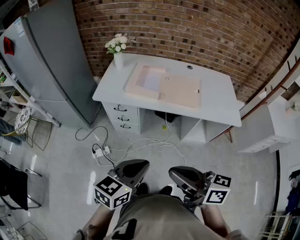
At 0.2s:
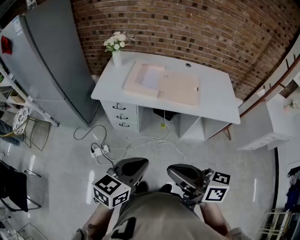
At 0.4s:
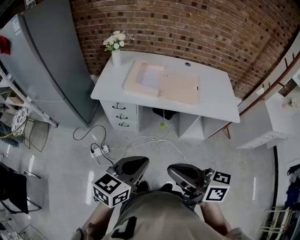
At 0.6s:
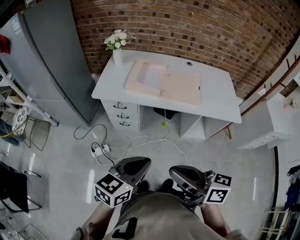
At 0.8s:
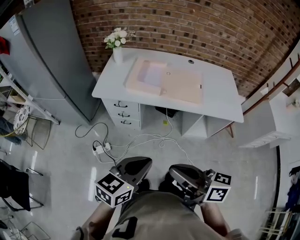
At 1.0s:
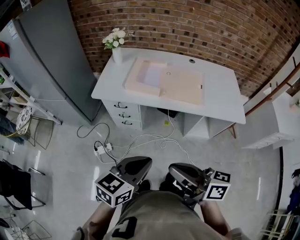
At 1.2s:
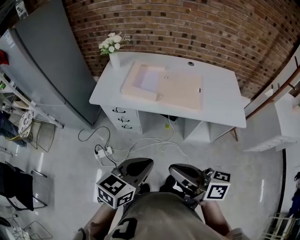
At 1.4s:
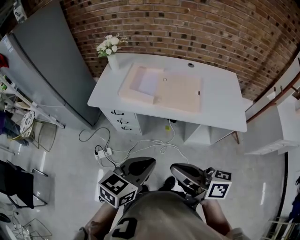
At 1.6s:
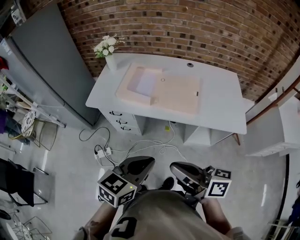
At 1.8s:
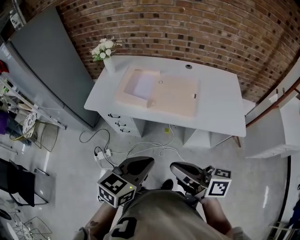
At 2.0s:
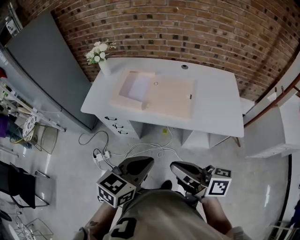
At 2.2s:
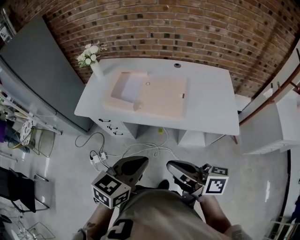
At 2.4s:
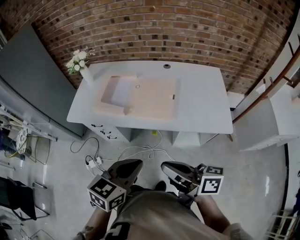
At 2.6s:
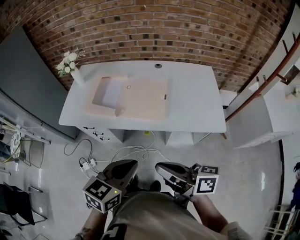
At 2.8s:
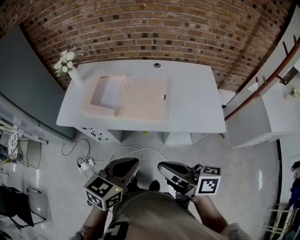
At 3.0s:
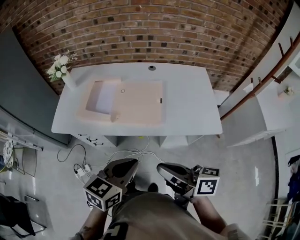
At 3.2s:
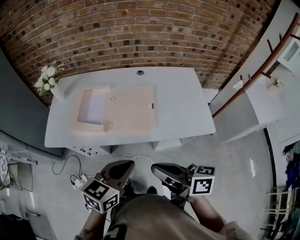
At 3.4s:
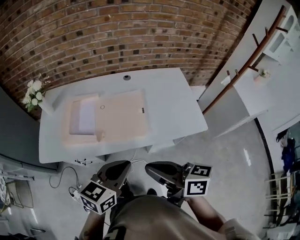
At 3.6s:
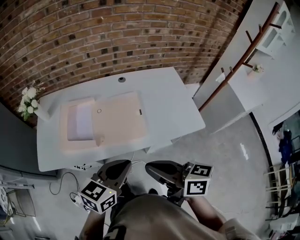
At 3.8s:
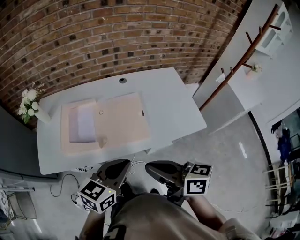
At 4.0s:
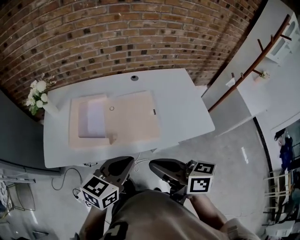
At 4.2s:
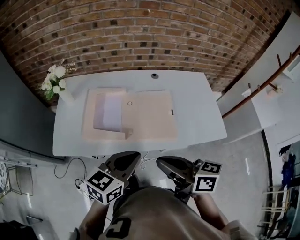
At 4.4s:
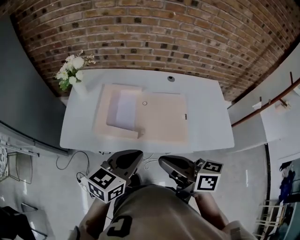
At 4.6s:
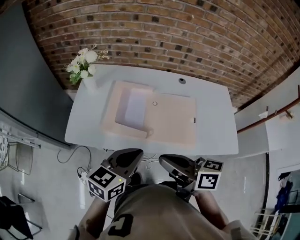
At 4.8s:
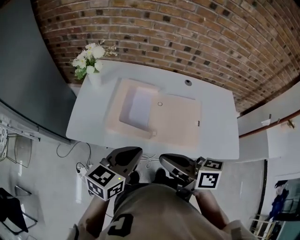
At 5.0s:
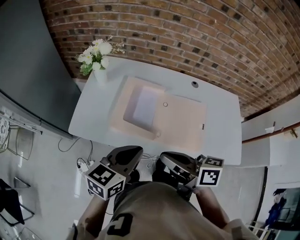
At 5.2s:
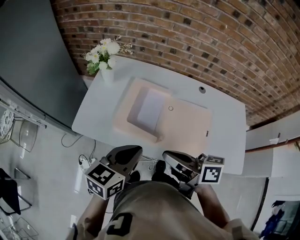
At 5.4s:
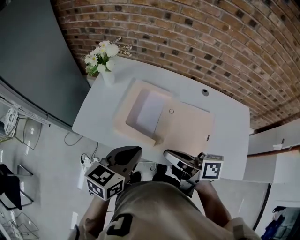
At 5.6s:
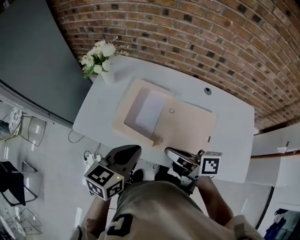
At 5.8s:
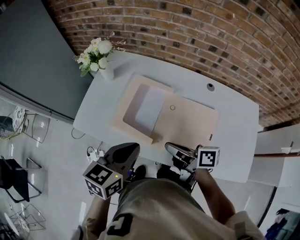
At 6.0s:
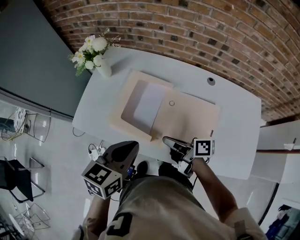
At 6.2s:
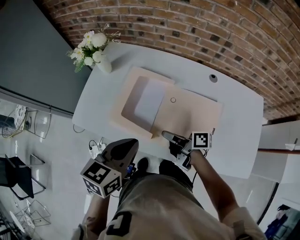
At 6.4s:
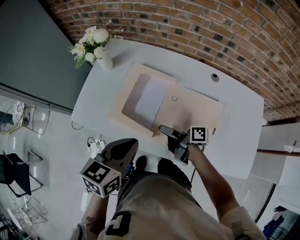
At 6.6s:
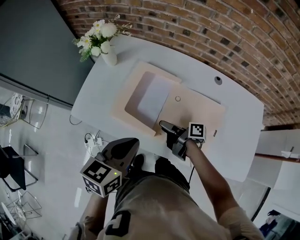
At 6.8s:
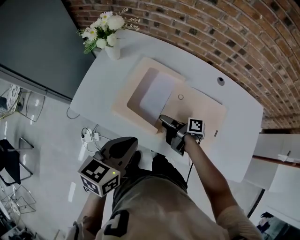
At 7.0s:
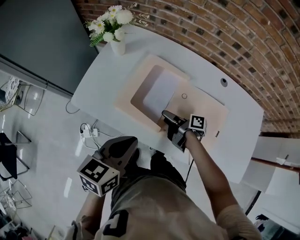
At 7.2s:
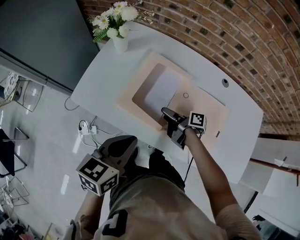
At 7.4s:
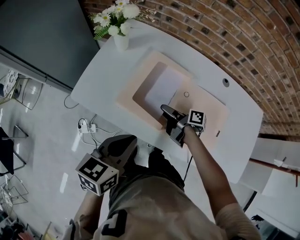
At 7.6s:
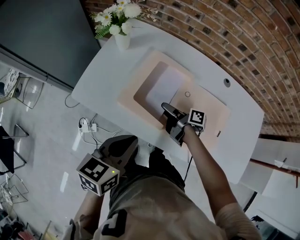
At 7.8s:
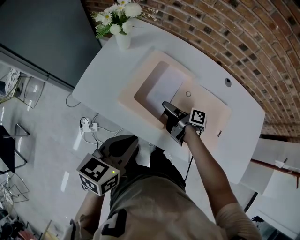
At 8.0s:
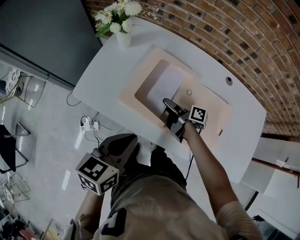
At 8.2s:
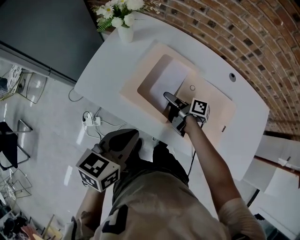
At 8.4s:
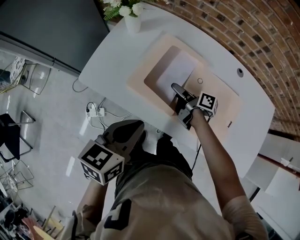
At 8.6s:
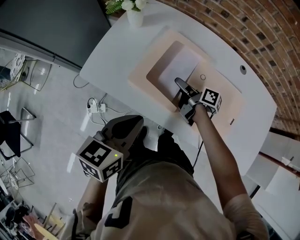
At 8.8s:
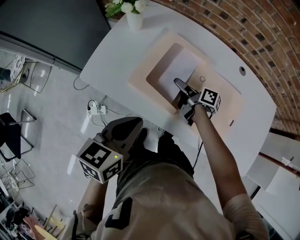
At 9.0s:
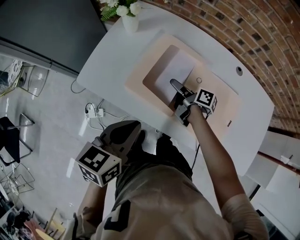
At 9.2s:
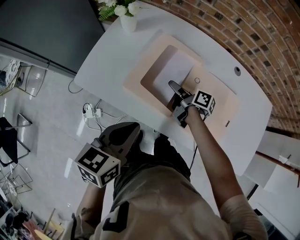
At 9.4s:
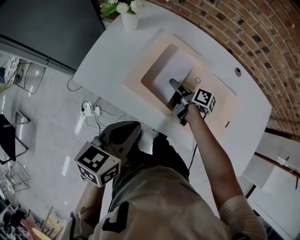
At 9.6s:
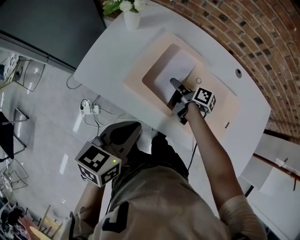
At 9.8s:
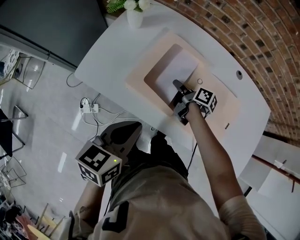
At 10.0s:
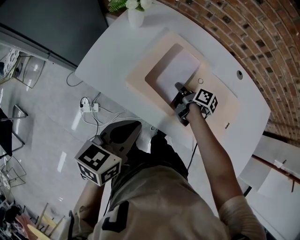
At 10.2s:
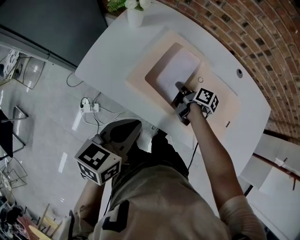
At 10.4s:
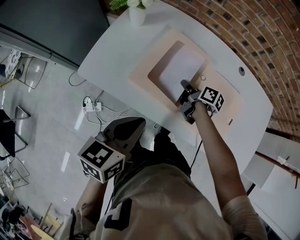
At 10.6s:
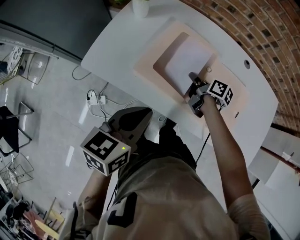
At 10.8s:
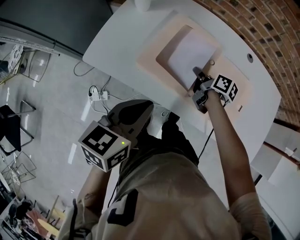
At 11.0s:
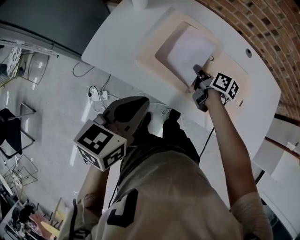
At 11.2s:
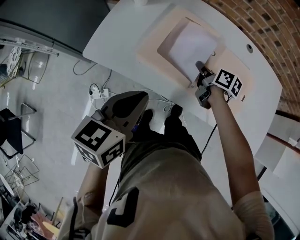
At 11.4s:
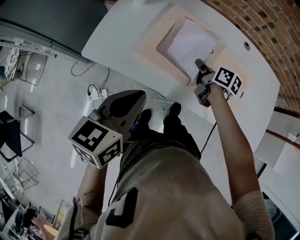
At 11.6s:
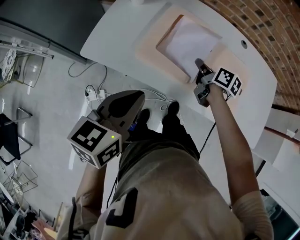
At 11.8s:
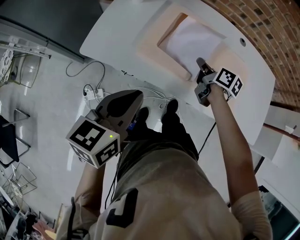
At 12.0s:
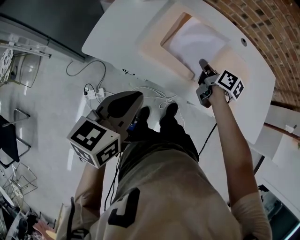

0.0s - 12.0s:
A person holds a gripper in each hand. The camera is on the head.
0.0s - 1.6s: The grippers both shift to the right and forward by about 15 cm.
1.6s - 3.0s: The right gripper moves to the right and forward, roughly 10 cm. The left gripper travels forward and to the right by approximately 15 cm.
3.0s - 4.4s: Both grippers travel together to the left and forward, approximately 20 cm.
4.4s - 6.0s: The left gripper goes roughly 10 cm forward, and swivels roughly 30 degrees. Meanwhile the right gripper shifts approximately 20 cm downward and forward, and turns by some 40 degrees.
6.0s - 7.6s: The left gripper shifts some 5 cm to the left. The right gripper goes approximately 15 cm downward and forward, and opens its fingers.
7.6s - 9.0s: The grippers move only a little.
9.0s - 10.4s: The right gripper closes.
10.4s - 12.0s: The left gripper moves to the left, about 5 cm; the right gripper heads upward and backward, covering roughly 10 cm.

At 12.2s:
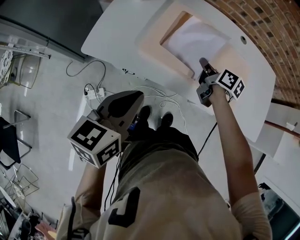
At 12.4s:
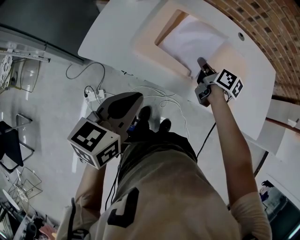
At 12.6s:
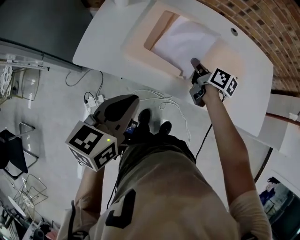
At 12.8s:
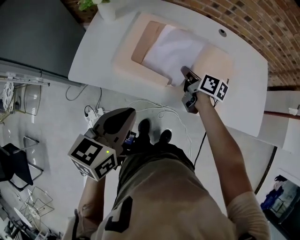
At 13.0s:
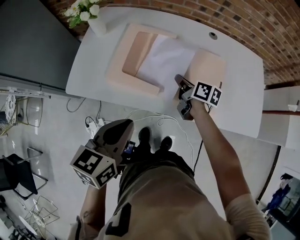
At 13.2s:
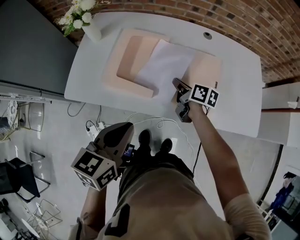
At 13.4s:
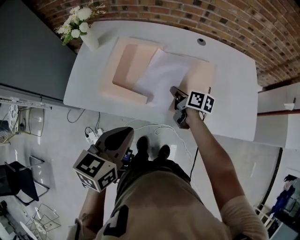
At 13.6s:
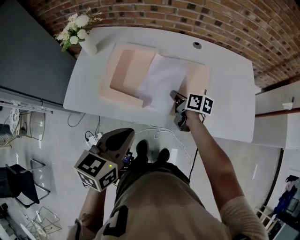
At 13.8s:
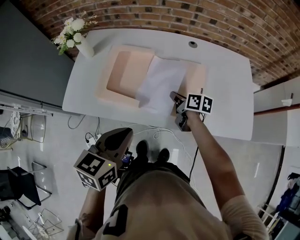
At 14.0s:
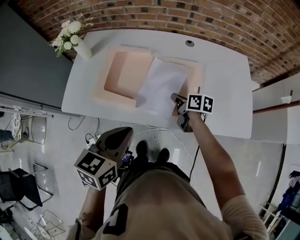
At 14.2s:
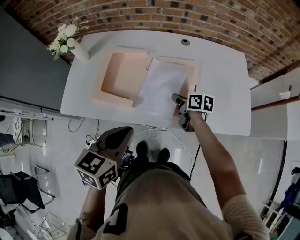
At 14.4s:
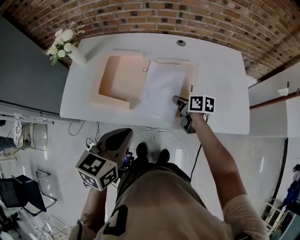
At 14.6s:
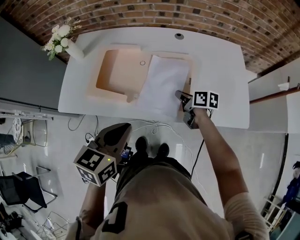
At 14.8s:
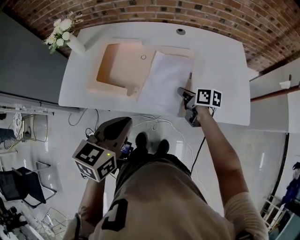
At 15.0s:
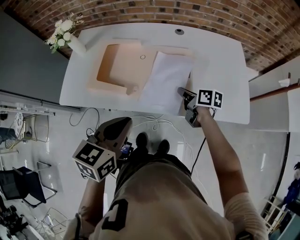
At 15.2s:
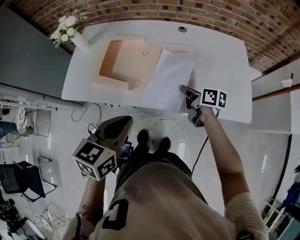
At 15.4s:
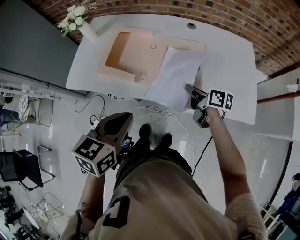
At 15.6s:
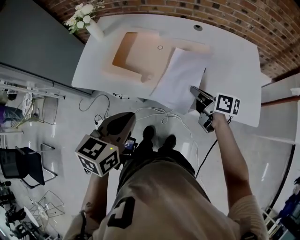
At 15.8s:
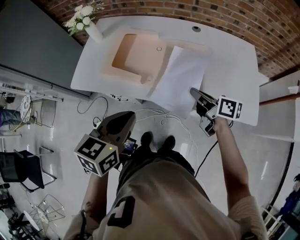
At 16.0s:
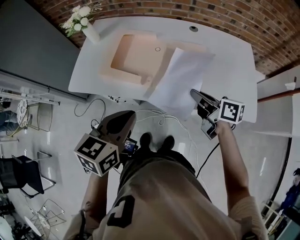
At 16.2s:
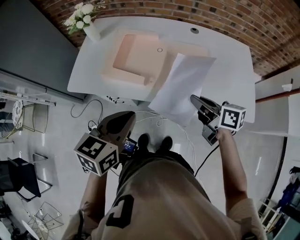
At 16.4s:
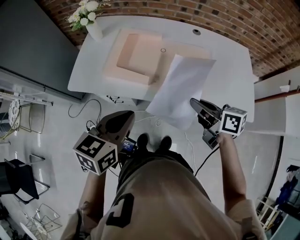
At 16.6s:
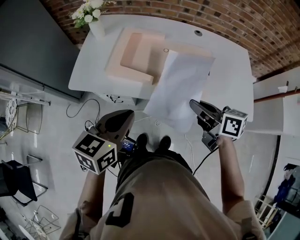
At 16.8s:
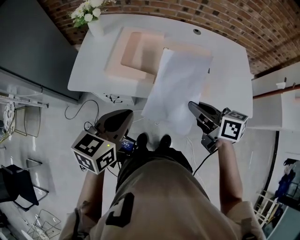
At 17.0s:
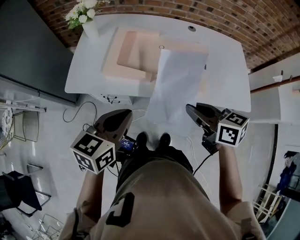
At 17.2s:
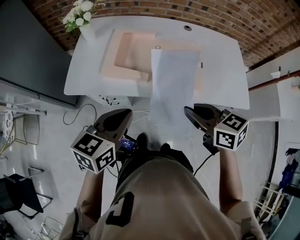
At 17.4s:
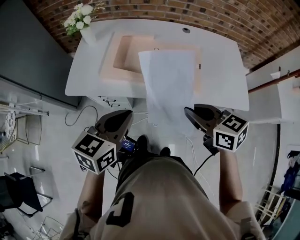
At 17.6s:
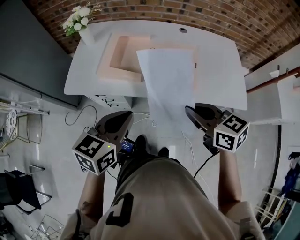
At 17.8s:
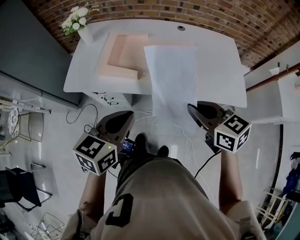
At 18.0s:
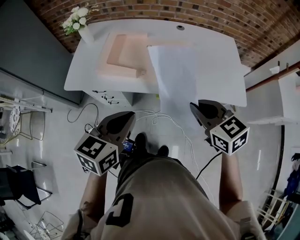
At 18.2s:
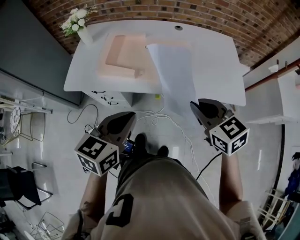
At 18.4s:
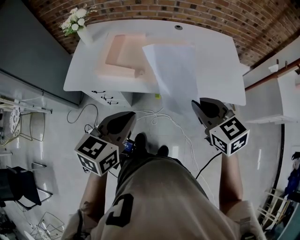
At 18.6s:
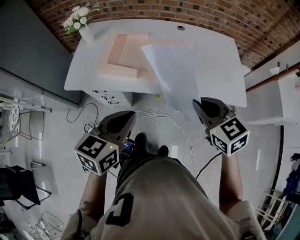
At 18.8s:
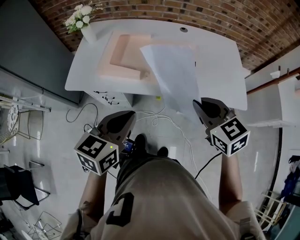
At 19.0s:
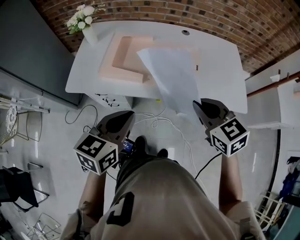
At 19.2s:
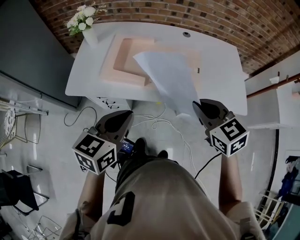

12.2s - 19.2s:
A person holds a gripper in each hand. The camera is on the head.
12.2s - 13.6s: The two grippers go some 15 cm to the right.
13.6s - 15.0s: The right gripper travels to the right and backward by roughly 15 cm. The left gripper goes about 5 cm to the right.
15.0s - 16.4s: The right gripper shifts about 20 cm upward, to the left and backward; the left gripper goes roughly 10 cm to the left.
16.4s - 17.8s: The right gripper heads backward and upward, covering some 10 cm, and rotates about 30 degrees, while the left gripper is displaced backward by about 5 cm.
17.8s - 19.2s: The left gripper moves roughly 5 cm.

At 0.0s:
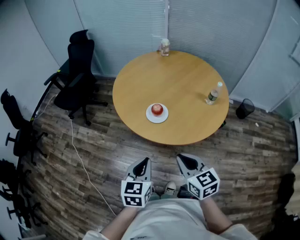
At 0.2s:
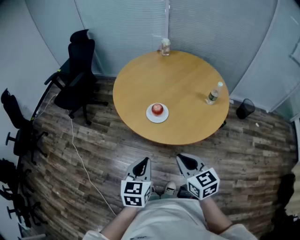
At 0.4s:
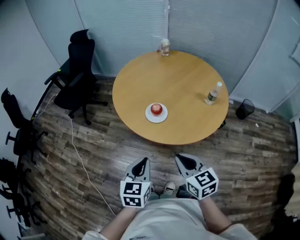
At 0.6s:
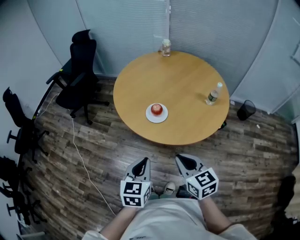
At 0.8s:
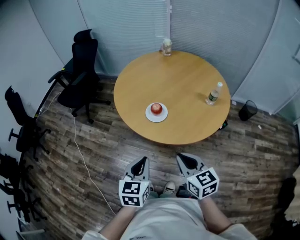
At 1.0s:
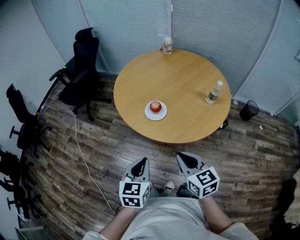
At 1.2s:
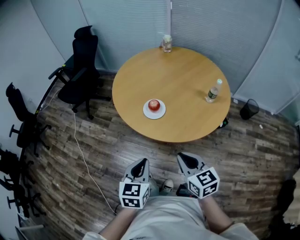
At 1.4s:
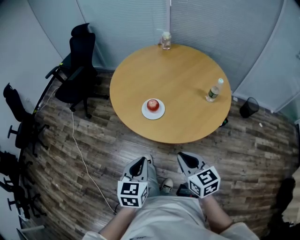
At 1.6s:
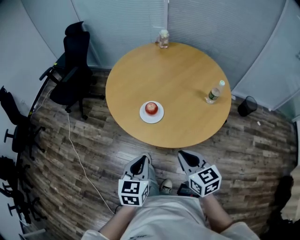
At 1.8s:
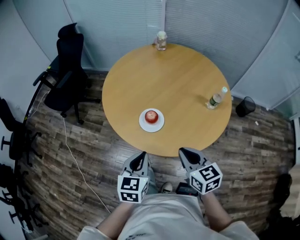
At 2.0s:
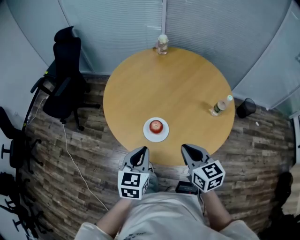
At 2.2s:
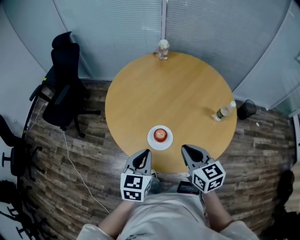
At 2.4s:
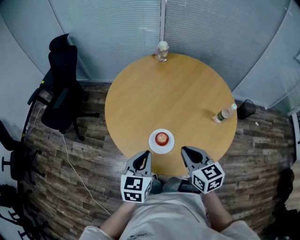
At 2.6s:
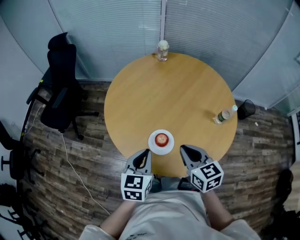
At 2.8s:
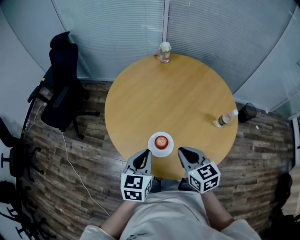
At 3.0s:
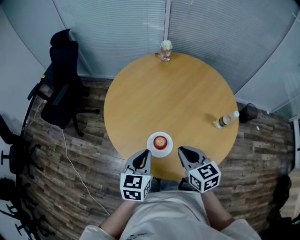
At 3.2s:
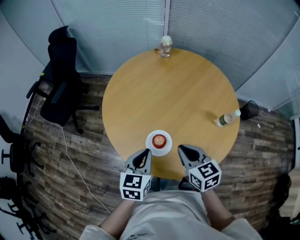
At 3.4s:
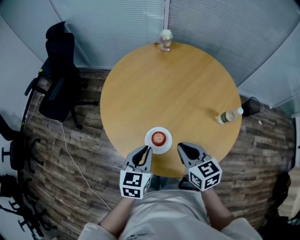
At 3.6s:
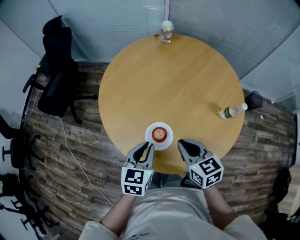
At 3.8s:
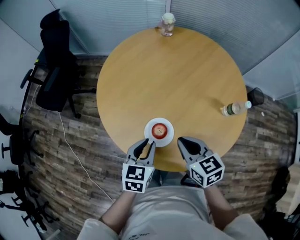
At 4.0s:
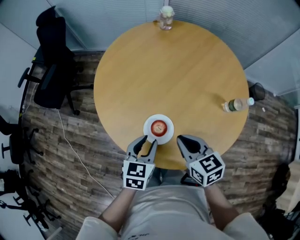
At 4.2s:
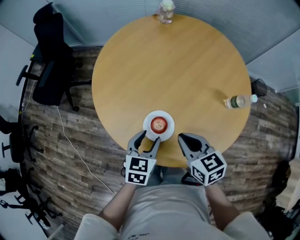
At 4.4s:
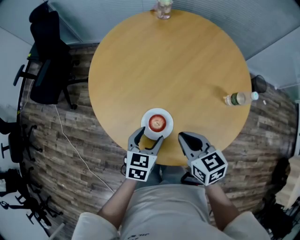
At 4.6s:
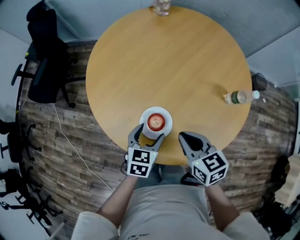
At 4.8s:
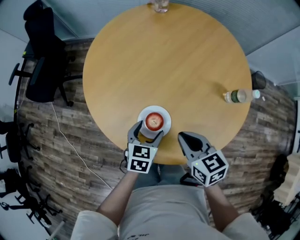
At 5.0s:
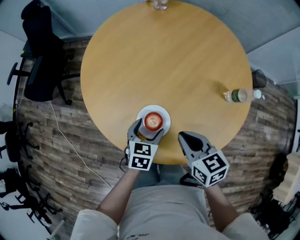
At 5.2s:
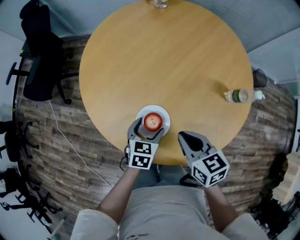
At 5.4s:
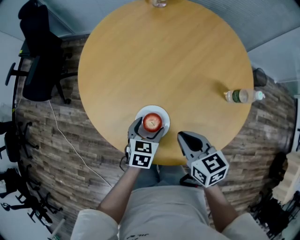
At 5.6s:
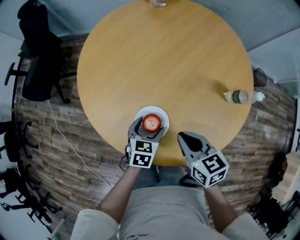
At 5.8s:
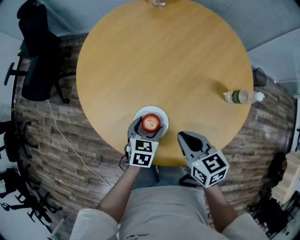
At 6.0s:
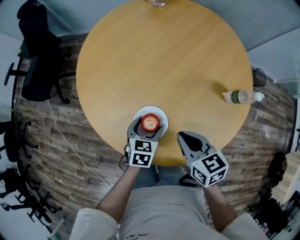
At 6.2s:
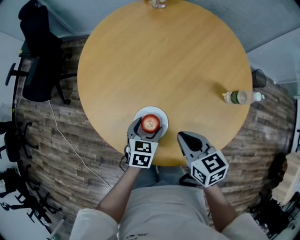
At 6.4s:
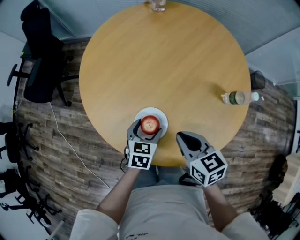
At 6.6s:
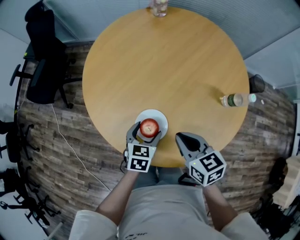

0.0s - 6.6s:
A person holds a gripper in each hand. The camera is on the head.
0.0s - 1.6s: The left gripper ends up roughly 5 cm from where it was, while the right gripper travels to the right by about 5 cm.
1.6s - 3.2s: Both grippers move forward, approximately 25 cm.
3.2s - 5.0s: The right gripper heads downward, covering about 10 cm; the left gripper moves downward, roughly 20 cm, and opens its fingers.
5.0s - 6.6s: The grippers stay close to where they were, moving slightly.
